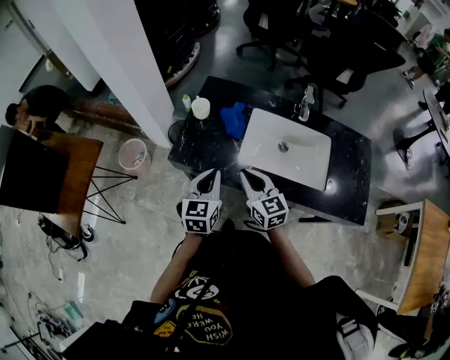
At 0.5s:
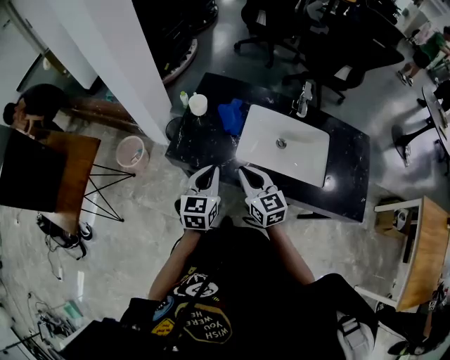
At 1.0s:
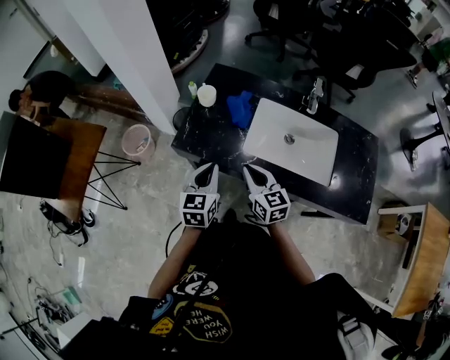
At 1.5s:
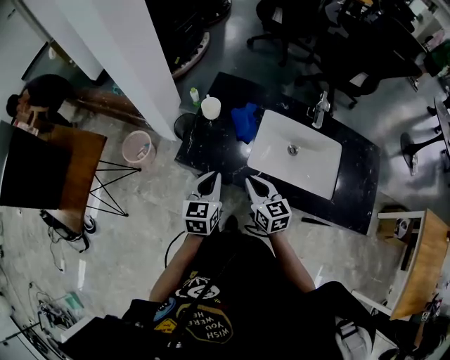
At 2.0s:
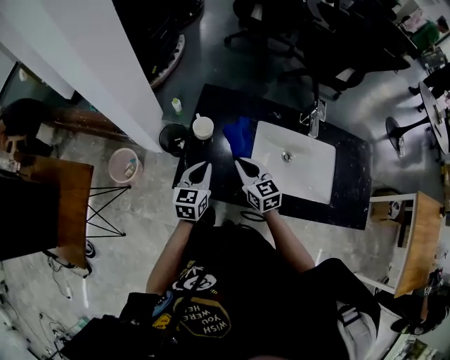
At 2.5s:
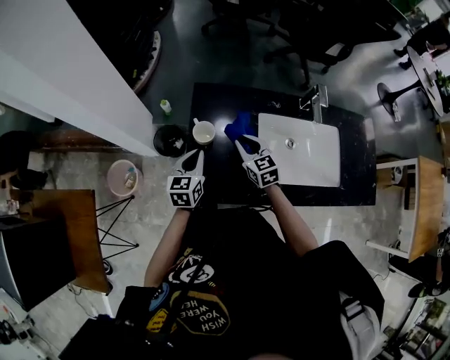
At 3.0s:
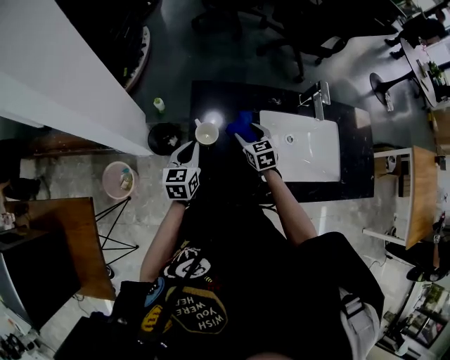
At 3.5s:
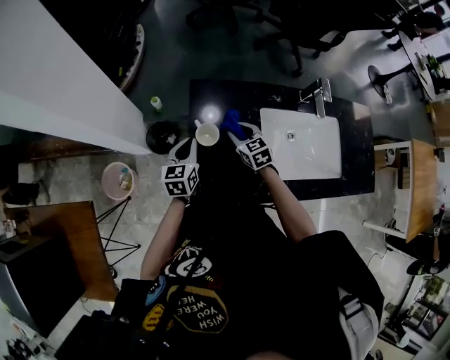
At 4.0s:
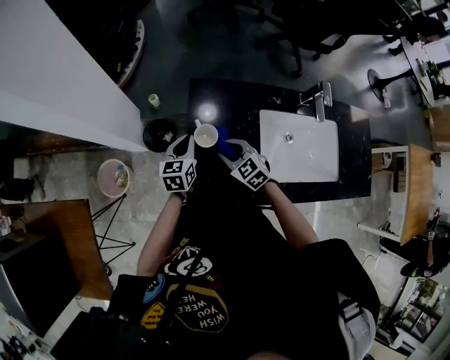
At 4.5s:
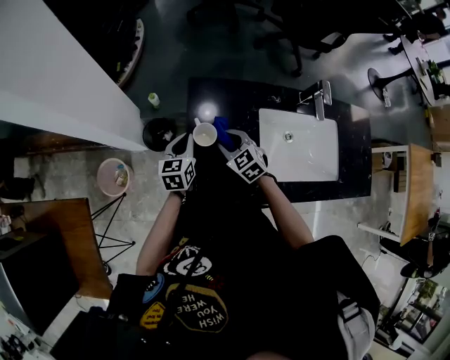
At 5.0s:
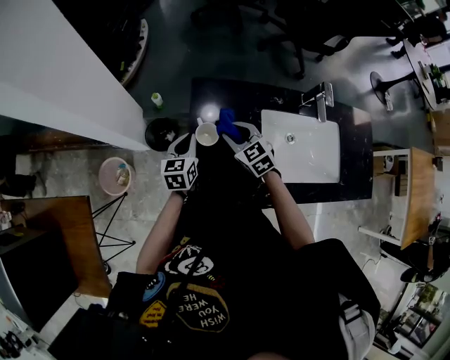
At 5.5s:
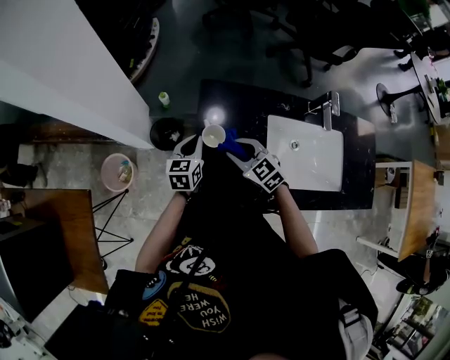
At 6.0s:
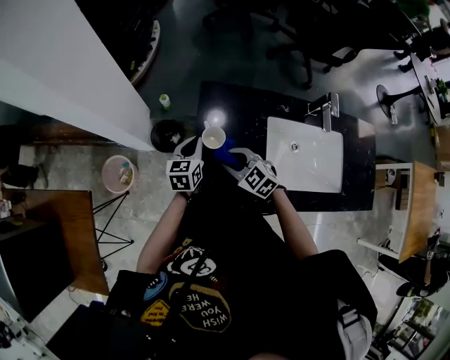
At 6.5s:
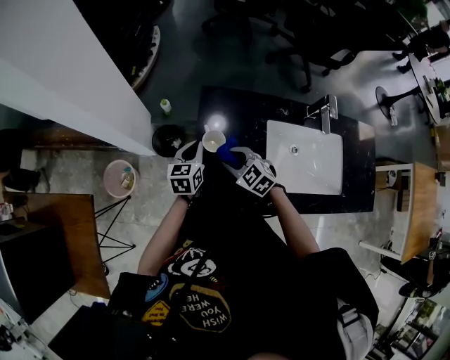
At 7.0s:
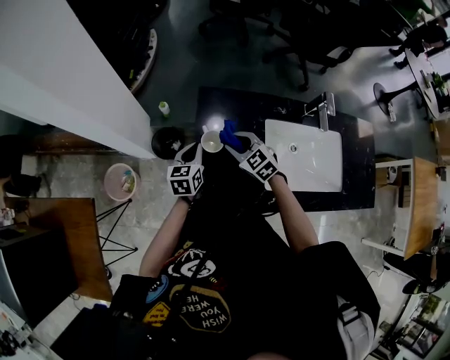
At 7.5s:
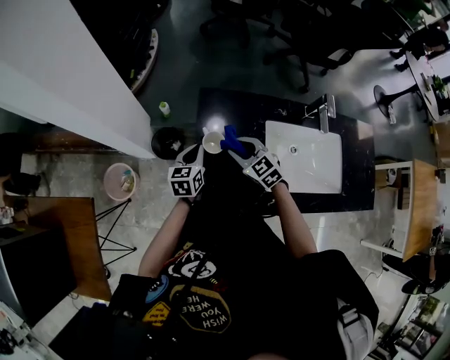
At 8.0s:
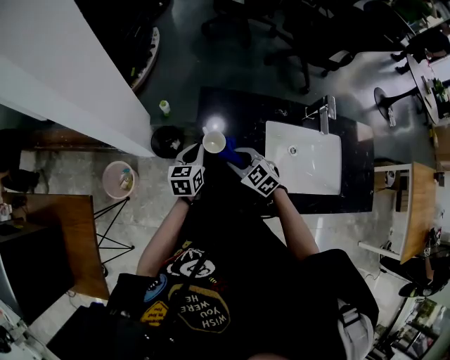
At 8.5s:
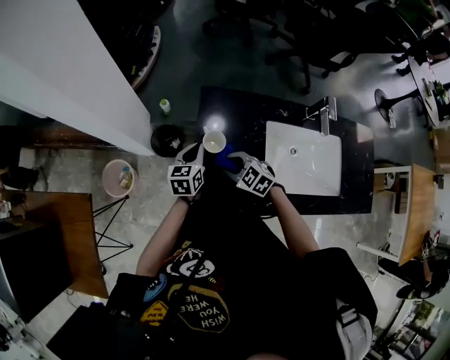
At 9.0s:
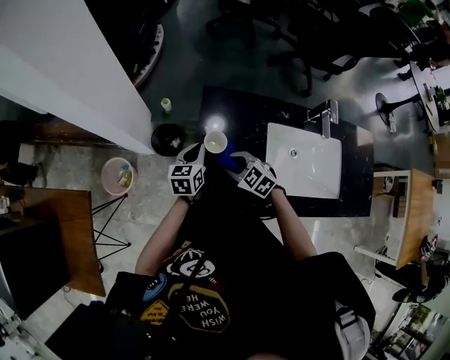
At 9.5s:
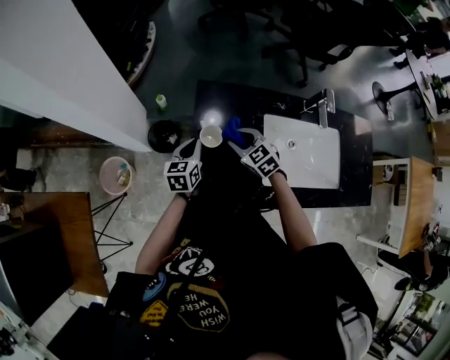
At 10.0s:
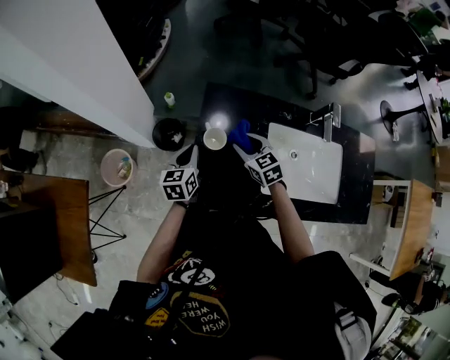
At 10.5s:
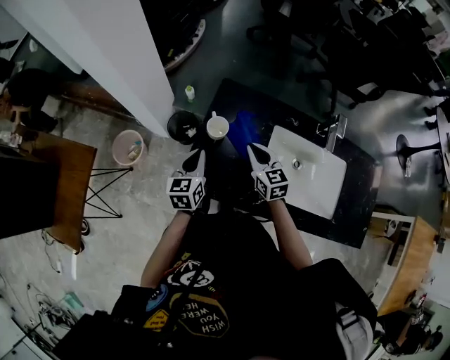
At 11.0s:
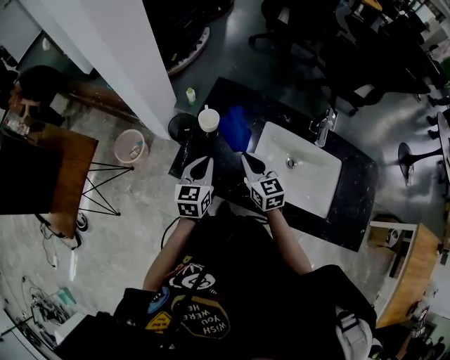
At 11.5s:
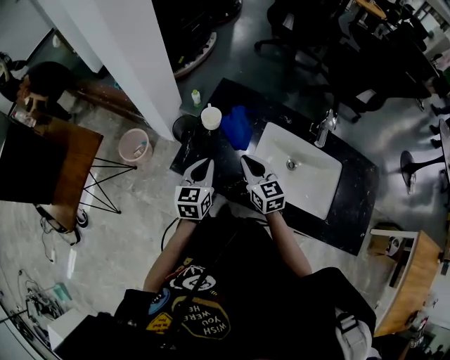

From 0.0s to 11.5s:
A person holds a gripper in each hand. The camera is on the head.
From 0.0s to 2.0s: Both grippers move forward, approximately 15 cm.
From 2.0s to 4.0s: The left gripper goes some 20 cm forward, to the left and downward; the right gripper moves downward, forward and to the left, some 15 cm, swivels roughly 30 degrees, and opens.
From 4.0s to 6.0s: The right gripper moves approximately 5 cm forward and comes back.
From 6.0s to 7.5s: The right gripper ends up roughly 5 cm from where it was.
From 9.5s to 11.5s: The grippers both shift backward and upward by roughly 20 cm. The left gripper turns by approximately 20 degrees, while the right gripper swivels approximately 30 degrees, and closes its fingers.

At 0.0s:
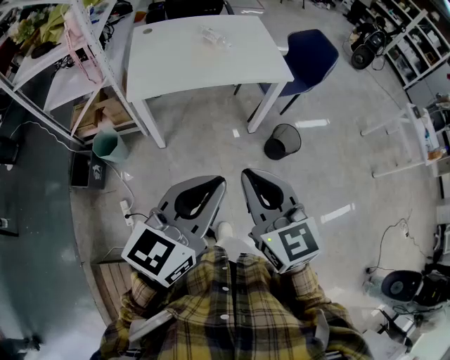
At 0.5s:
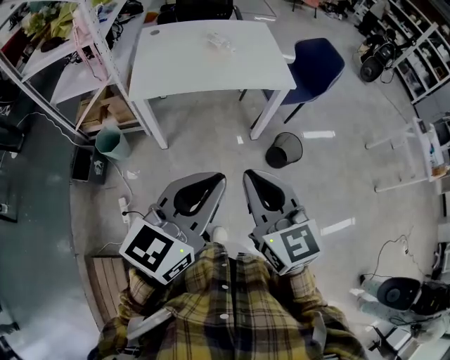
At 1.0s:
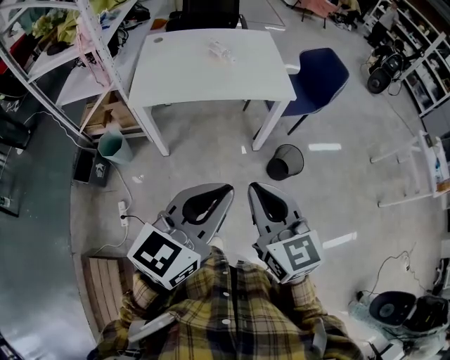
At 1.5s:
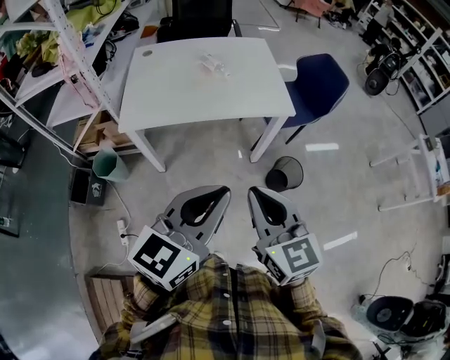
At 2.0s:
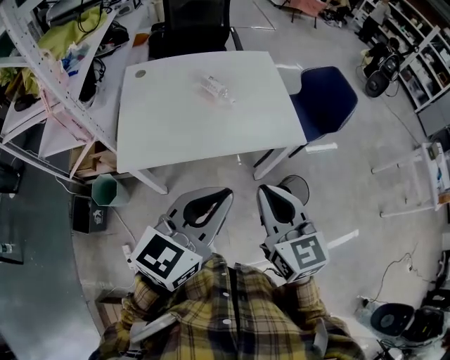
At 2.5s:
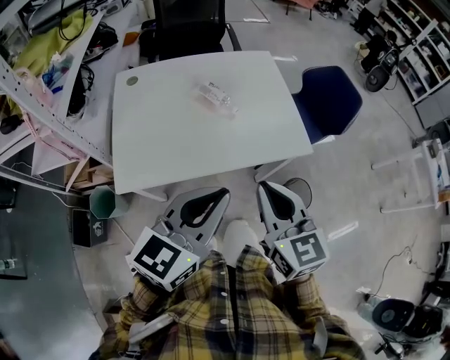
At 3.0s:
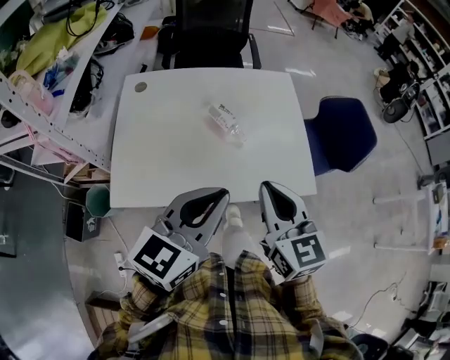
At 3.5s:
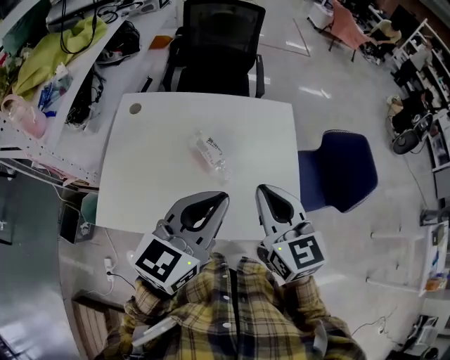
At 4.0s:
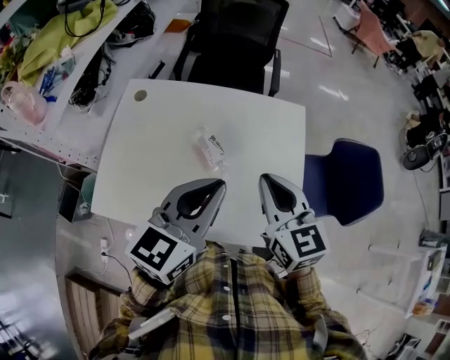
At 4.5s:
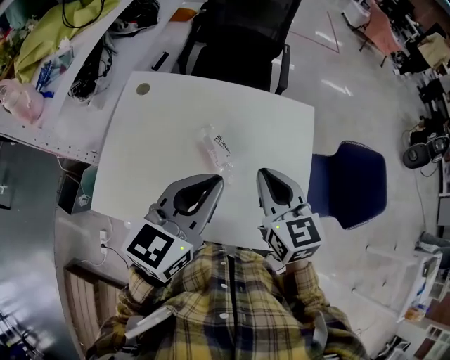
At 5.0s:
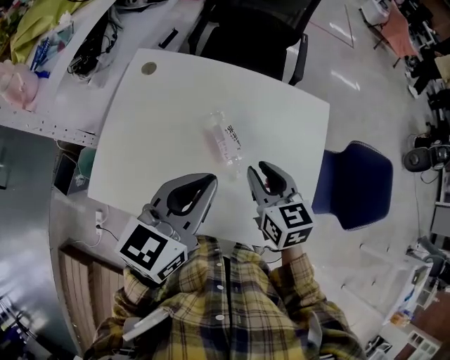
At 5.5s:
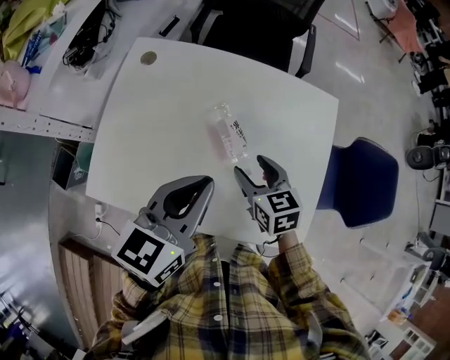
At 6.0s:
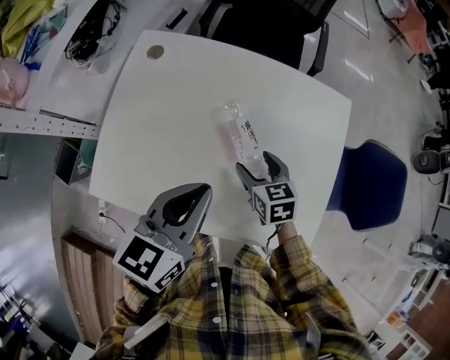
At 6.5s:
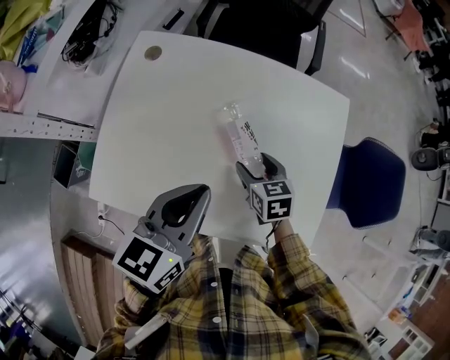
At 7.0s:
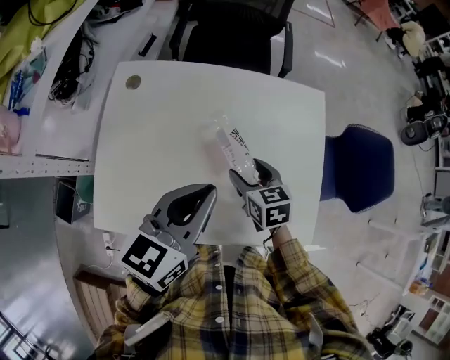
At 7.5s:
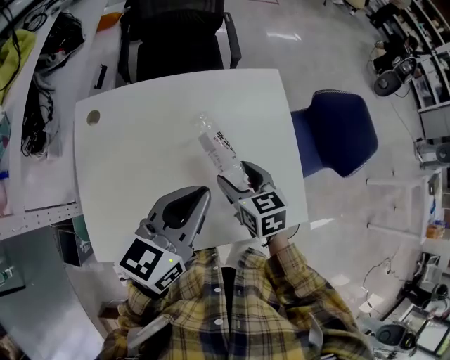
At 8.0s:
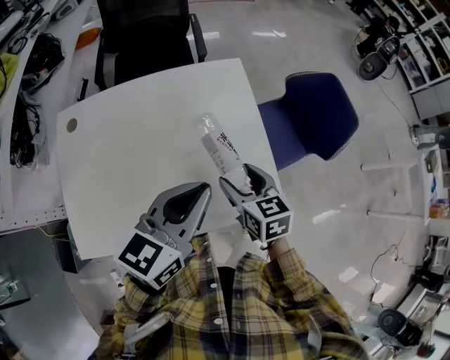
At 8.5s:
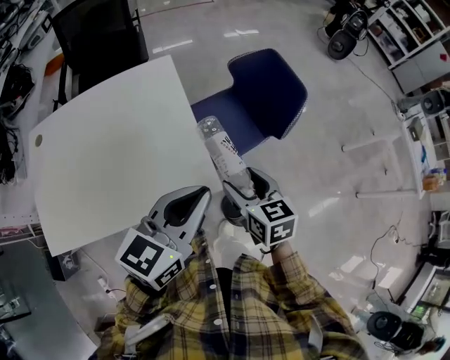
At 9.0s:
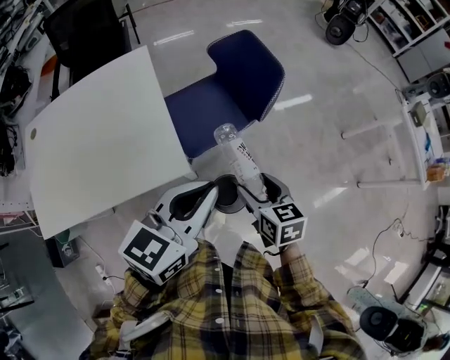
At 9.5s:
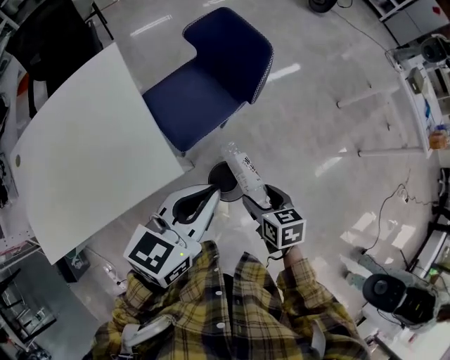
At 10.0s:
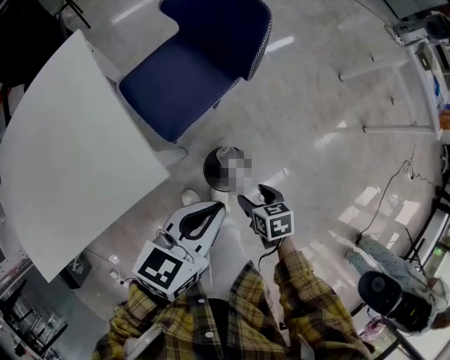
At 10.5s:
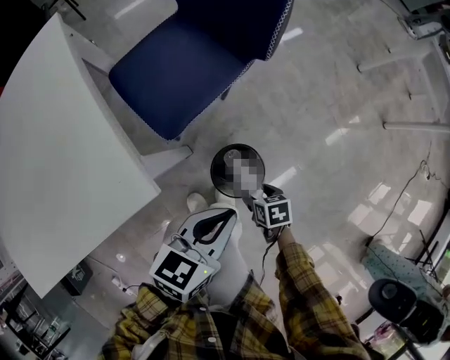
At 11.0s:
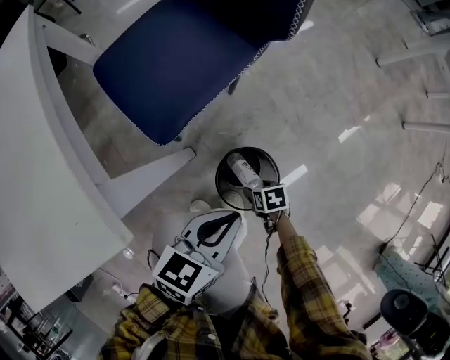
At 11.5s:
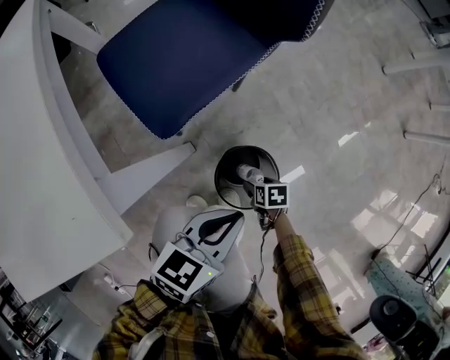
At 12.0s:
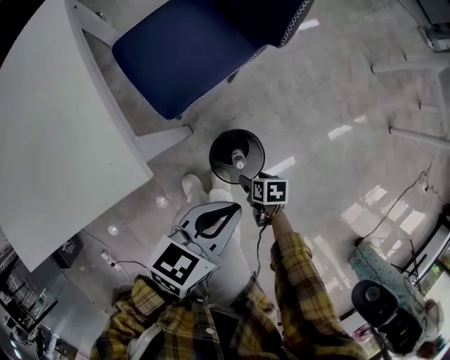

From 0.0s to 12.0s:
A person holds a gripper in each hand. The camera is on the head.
From 0.0s to 2.0s: The grippers both shift forward by approximately 30 cm.
From 2.0s to 4.0s: The two grippers go some 40 cm forward. The left gripper turns by about 20 degrees.
From 4.0s to 6.0s: The left gripper shifts about 15 cm downward and to the left; the right gripper travels downward by about 25 cm, rotates some 30 degrees, and opens up.
From 6.0s to 8.0s: The right gripper ends up approximately 20 cm from where it was, and changes its angle by about 30 degrees, while the left gripper moves roughly 15 cm, and swivels approximately 30 degrees.
From 8.0s to 10.0s: The two grippers travel together, to the right, about 40 cm. The right gripper heads downward, covering approximately 25 cm, and swivels approximately 40 degrees. The left gripper travels downward by about 15 cm, and rotates some 30 degrees.
From 10.0s to 12.0s: The left gripper travels downward by roughly 15 cm, while the right gripper travels downward by roughly 25 cm.

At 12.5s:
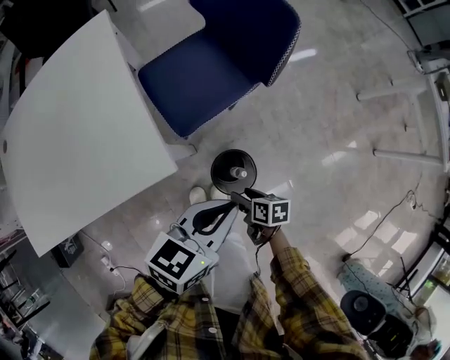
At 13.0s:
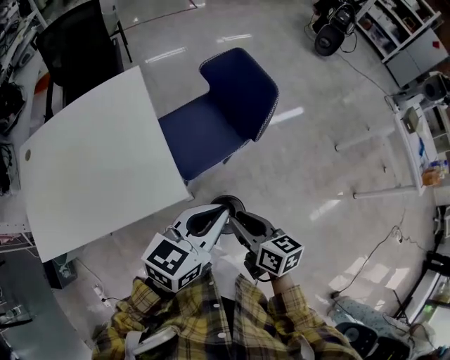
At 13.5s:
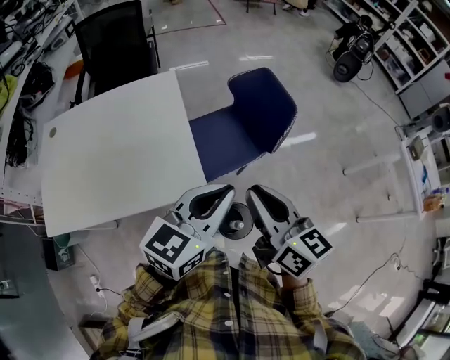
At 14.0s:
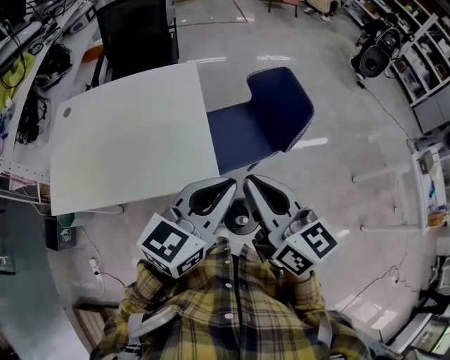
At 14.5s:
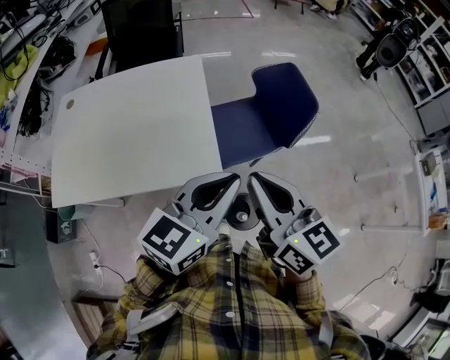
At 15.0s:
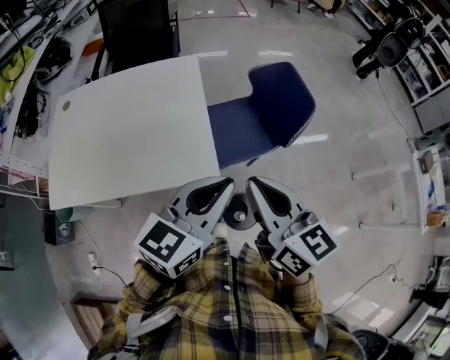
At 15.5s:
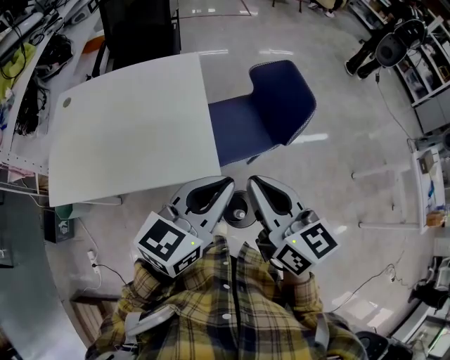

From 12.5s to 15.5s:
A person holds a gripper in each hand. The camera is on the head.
From 12.5s to 14.0s: The left gripper is displaced upward and to the left by approximately 25 cm, and swivels approximately 30 degrees. Meanwhile the right gripper heads upward, covering some 50 cm, tips its fingers upward by about 50 degrees, and closes up.
From 14.0s to 15.5s: The grippers move only a little.
